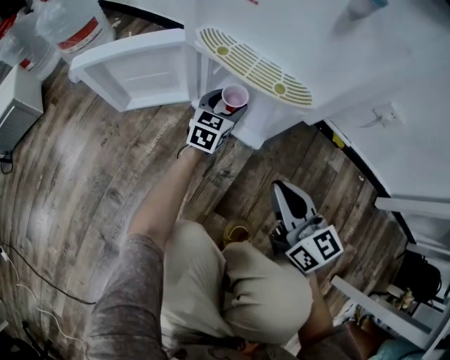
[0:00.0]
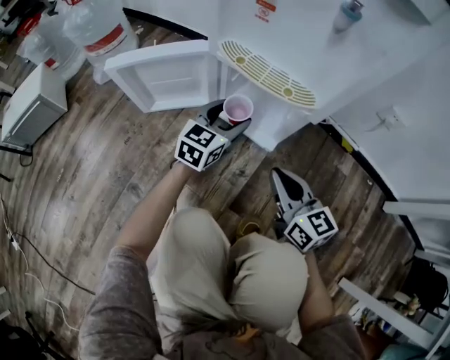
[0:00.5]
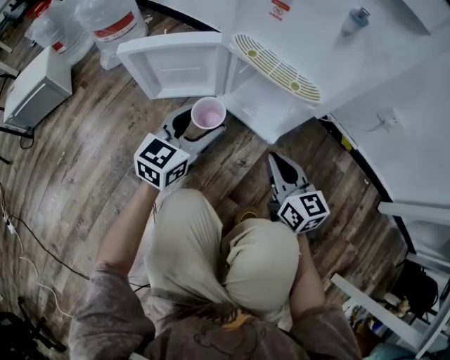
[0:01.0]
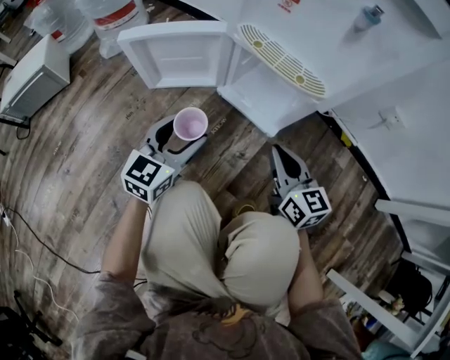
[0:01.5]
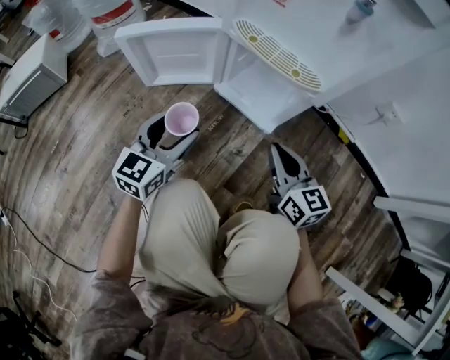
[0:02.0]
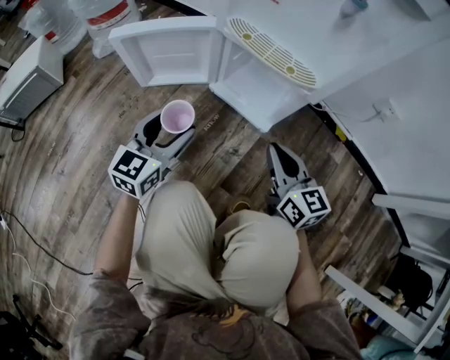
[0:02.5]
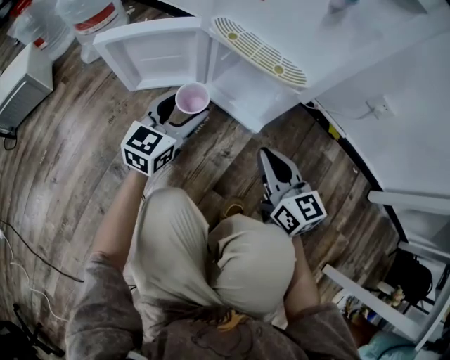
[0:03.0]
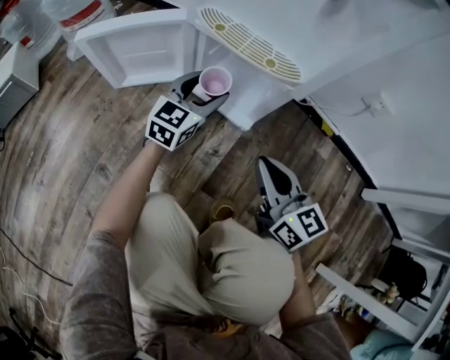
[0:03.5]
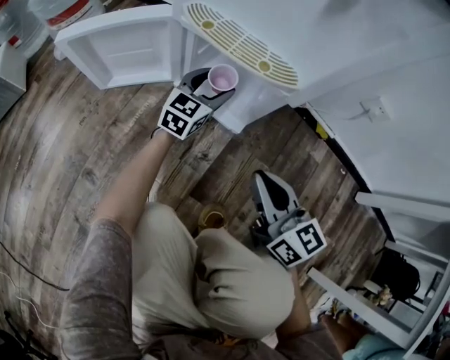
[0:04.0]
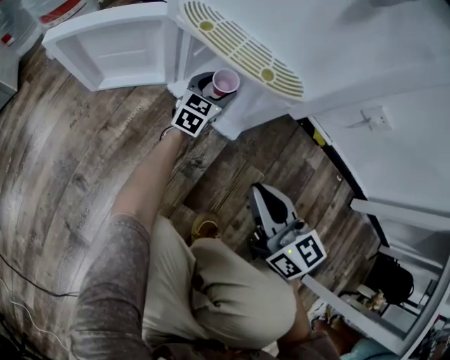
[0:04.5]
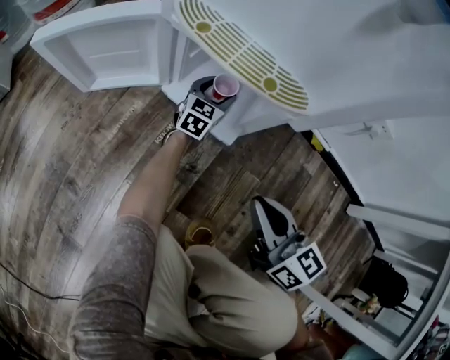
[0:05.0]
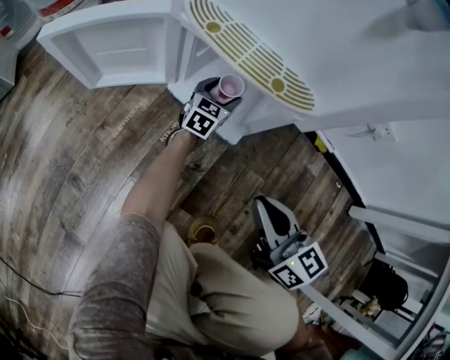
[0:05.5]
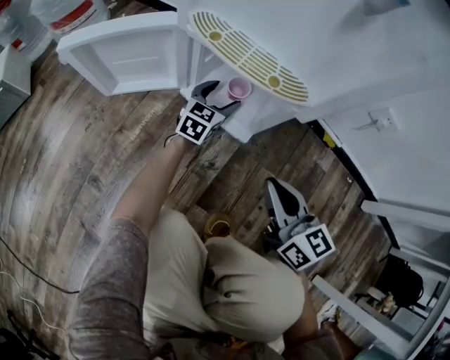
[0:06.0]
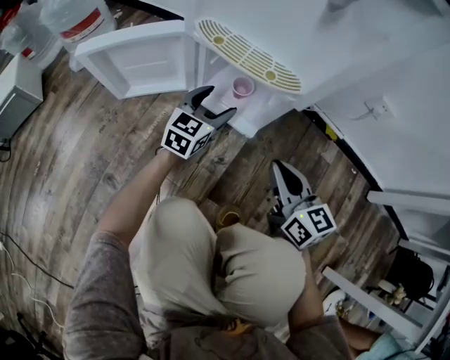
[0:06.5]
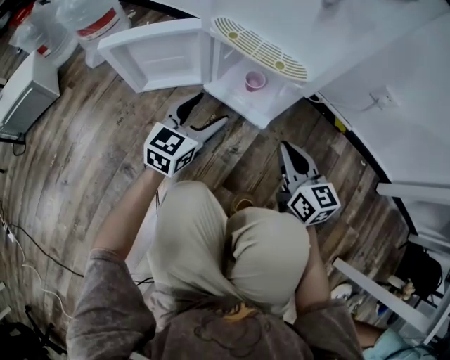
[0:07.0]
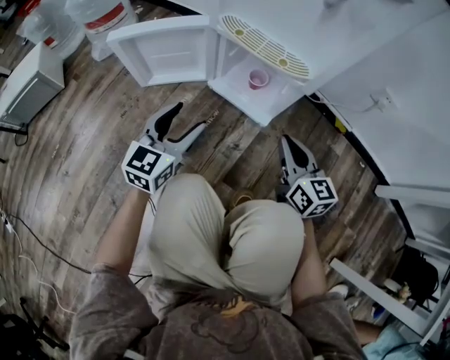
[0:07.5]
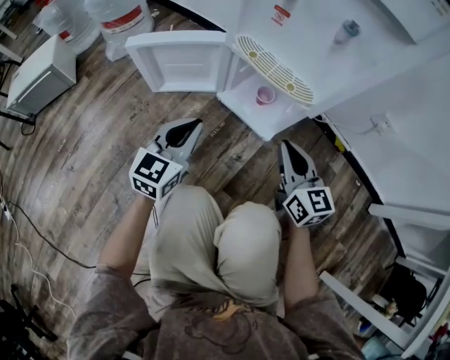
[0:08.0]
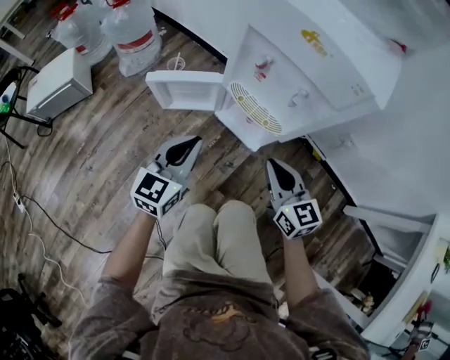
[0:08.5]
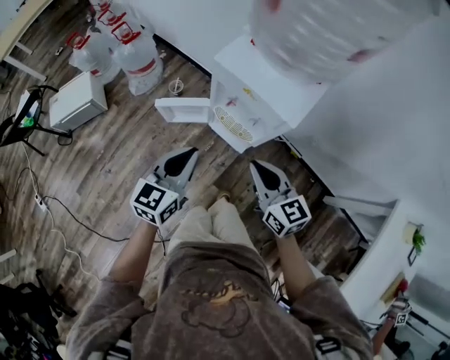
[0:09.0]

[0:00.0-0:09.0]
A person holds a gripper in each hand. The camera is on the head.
0:00.0 to 0:02.0: The left gripper shifts some 30 cm backward, to the left and upward.
0:02.0 to 0:04.5: The left gripper goes roughly 35 cm forward, to the right and downward. Meanwhile the right gripper moves some 5 cm.
0:04.5 to 0:07.0: The left gripper goes roughly 25 cm backward, upward and to the left.
0:07.0 to 0:09.0: The two grippers go some 50 cm upward. The left gripper closes up.

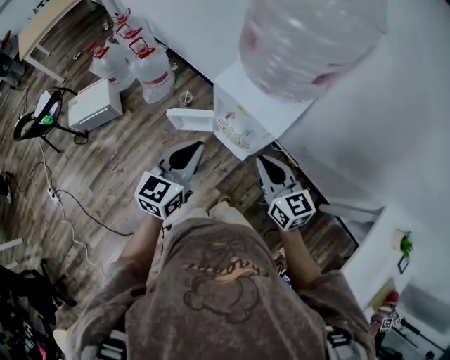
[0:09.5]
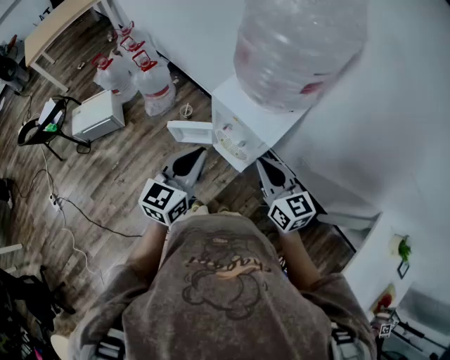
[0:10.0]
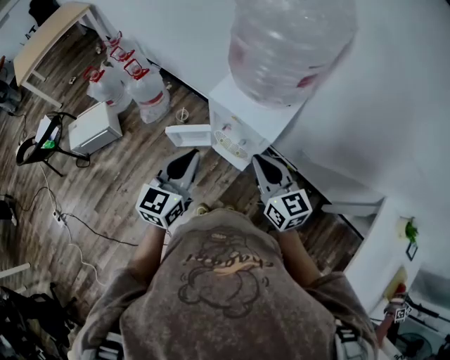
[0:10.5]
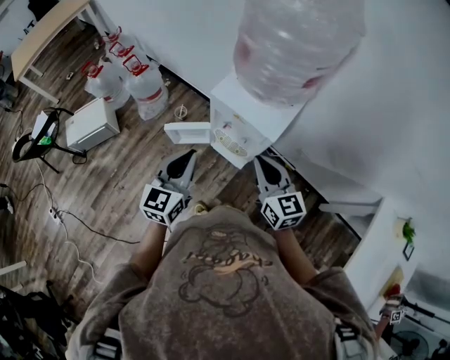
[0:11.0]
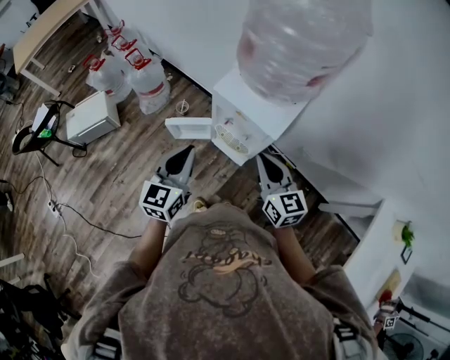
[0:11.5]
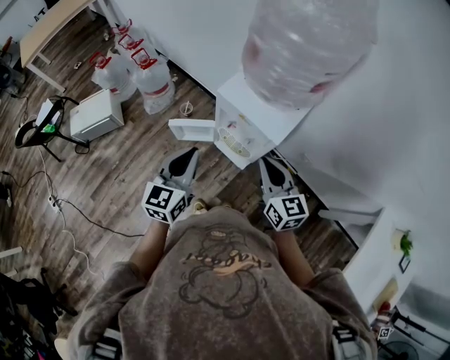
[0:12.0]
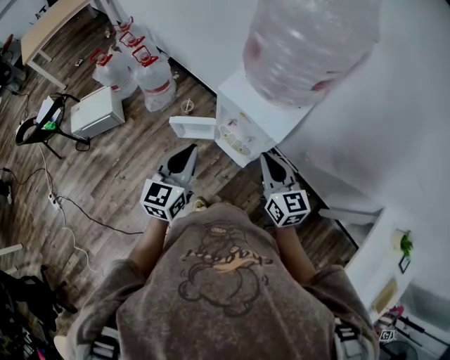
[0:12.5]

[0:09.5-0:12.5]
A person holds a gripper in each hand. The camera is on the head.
0:09.5 to 0:12.5: The grippers stay close to where they were, moving slightly.

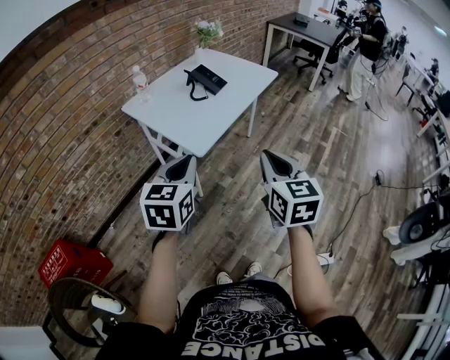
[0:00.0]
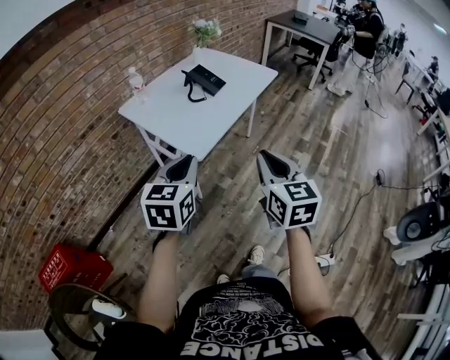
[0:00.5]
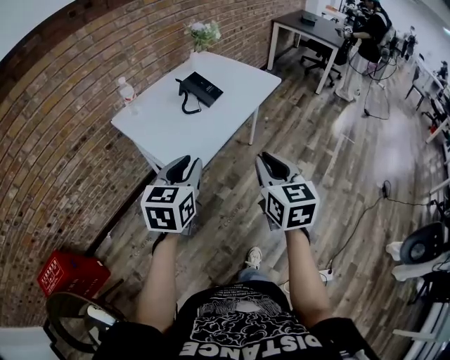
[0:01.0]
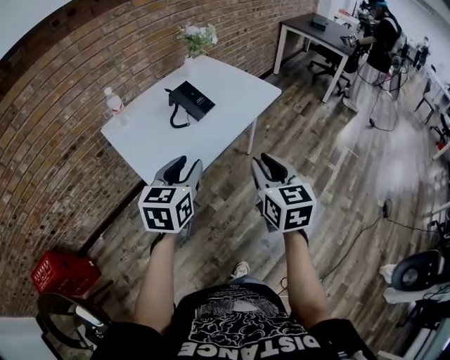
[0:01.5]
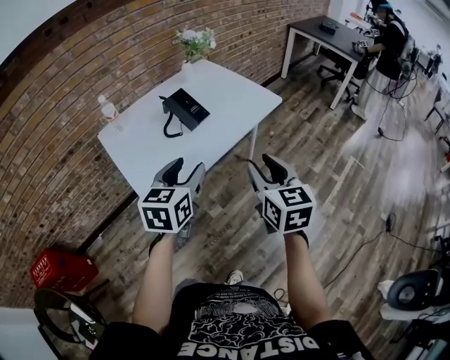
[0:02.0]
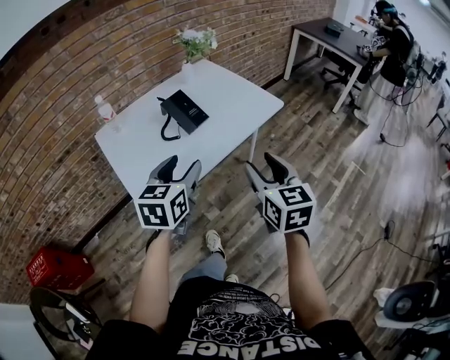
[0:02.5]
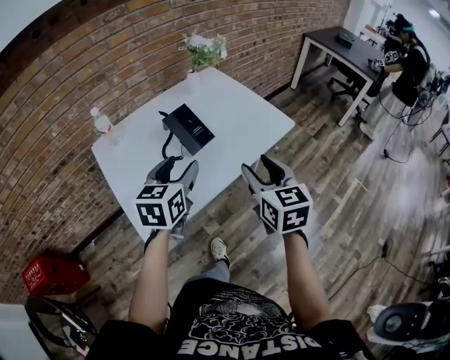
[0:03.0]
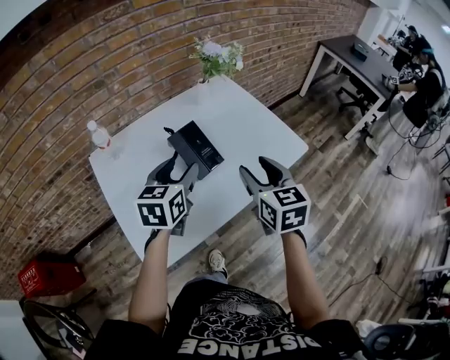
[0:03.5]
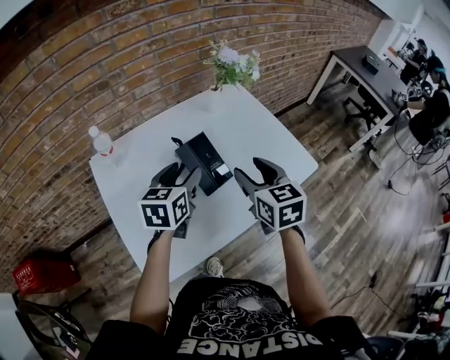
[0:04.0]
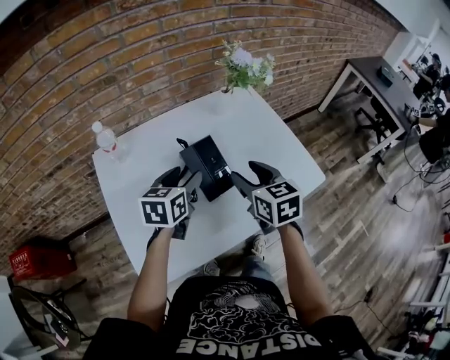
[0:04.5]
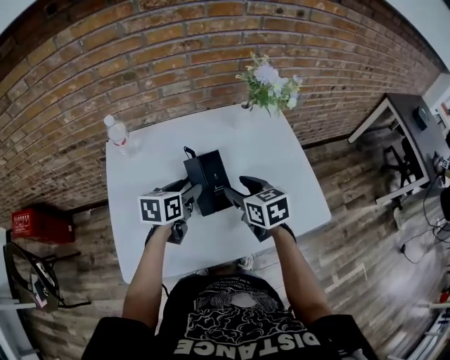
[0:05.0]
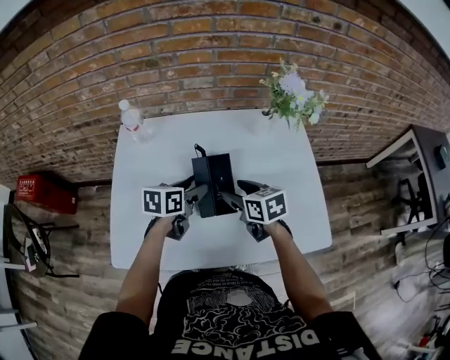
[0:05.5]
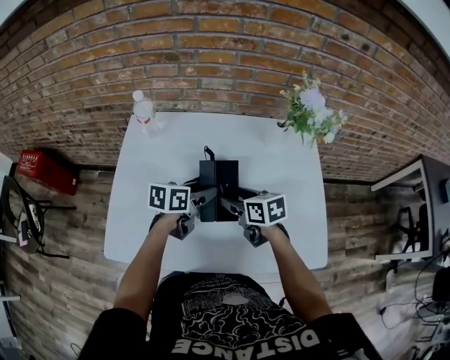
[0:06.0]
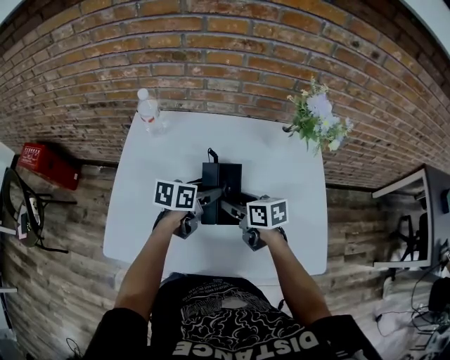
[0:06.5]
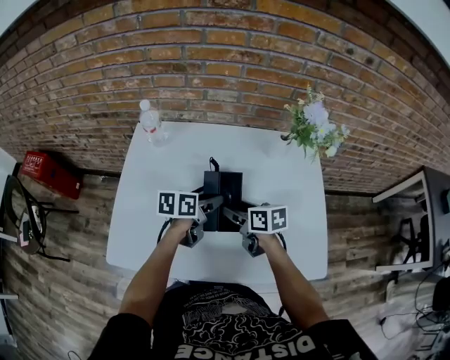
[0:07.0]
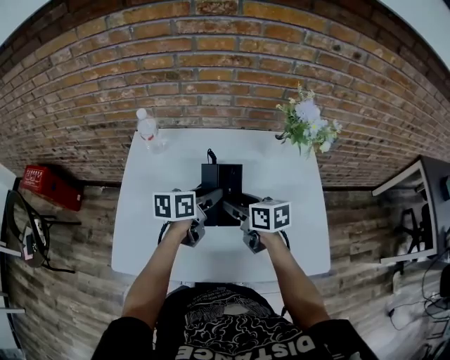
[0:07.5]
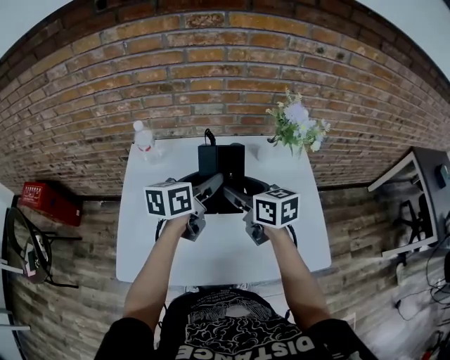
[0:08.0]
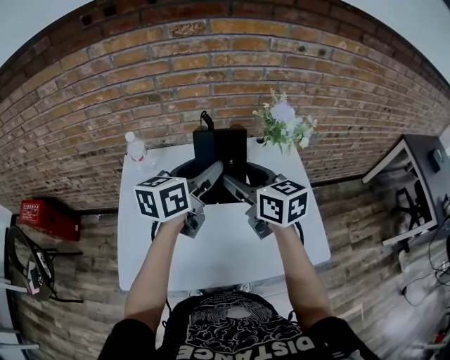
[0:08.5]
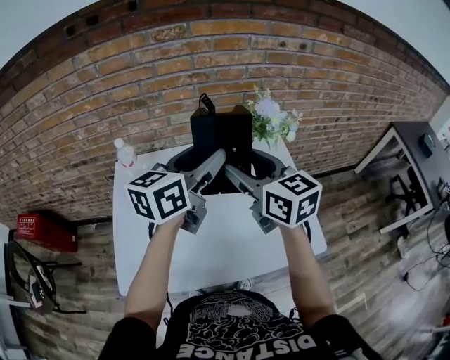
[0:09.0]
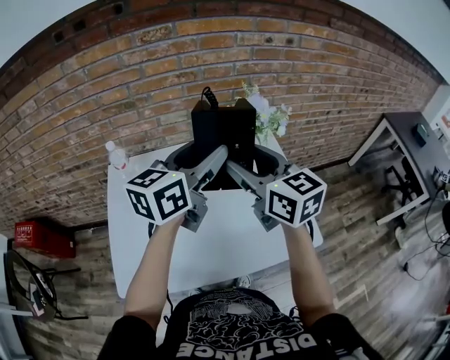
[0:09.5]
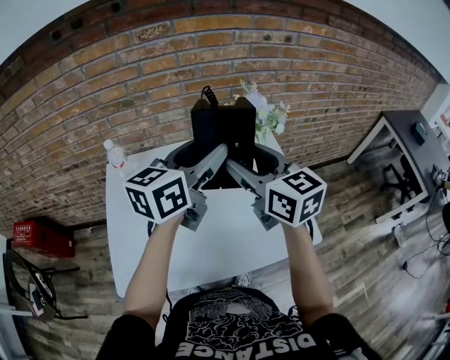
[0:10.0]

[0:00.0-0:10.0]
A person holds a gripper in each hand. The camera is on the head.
0:00.0 to 0:02.0: The two grippers go roughly 35 cm forward and to the right. The left gripper opens its fingers; the right gripper opens.
0:02.0 to 0:04.0: The two grippers go about 35 cm forward.
0:04.0 to 0:06.0: Both grippers move downward, approximately 15 cm. The left gripper rotates roughly 30 degrees; the right gripper turns by approximately 50 degrees.
0:06.0 to 0:08.0: The grippers both shift upward by approximately 15 cm.
0:08.0 to 0:10.0: Both grippers move upward and to the right, approximately 20 cm. The right gripper changes its angle by roughly 20 degrees. Meanwhile the left gripper turns by some 20 degrees.

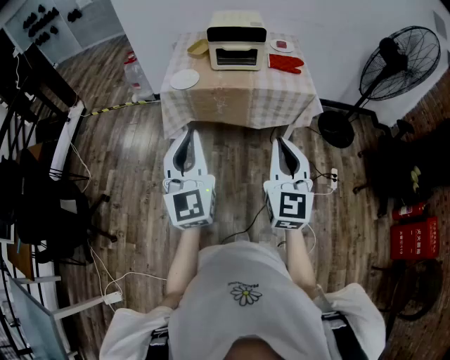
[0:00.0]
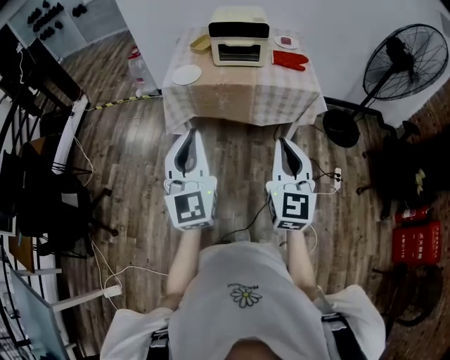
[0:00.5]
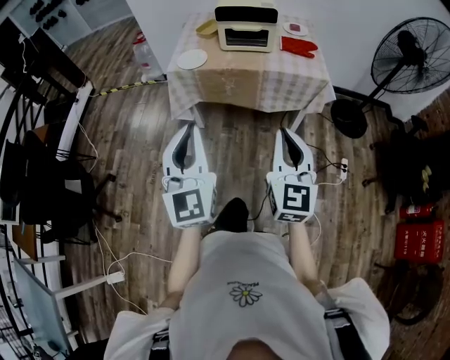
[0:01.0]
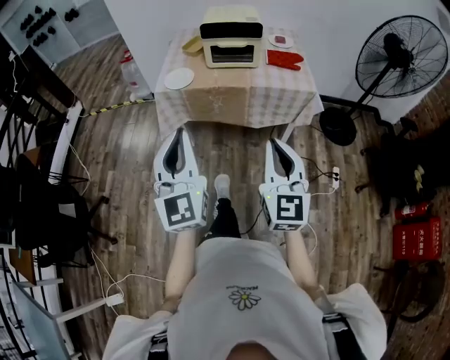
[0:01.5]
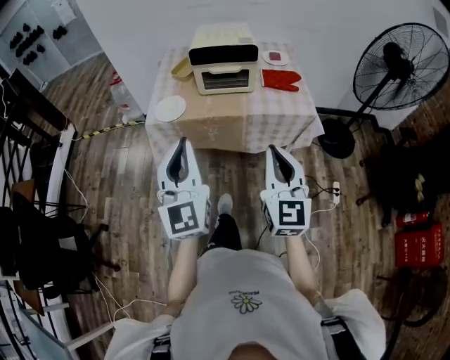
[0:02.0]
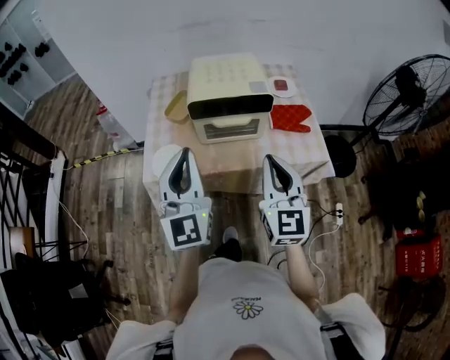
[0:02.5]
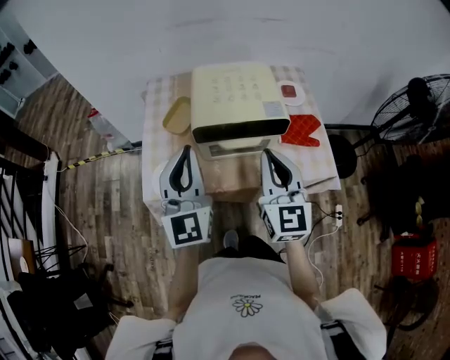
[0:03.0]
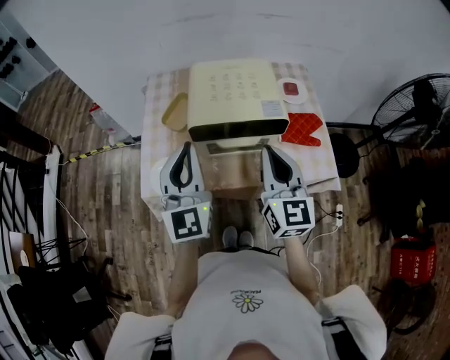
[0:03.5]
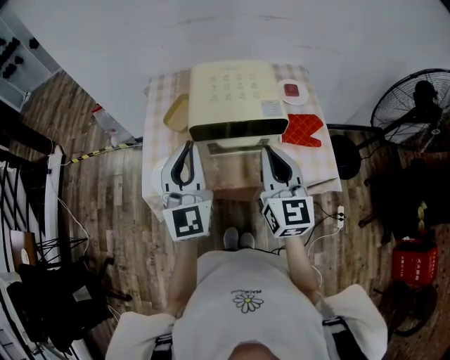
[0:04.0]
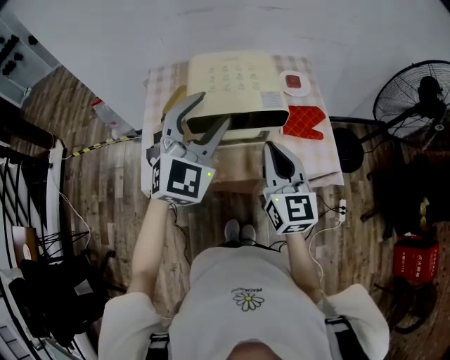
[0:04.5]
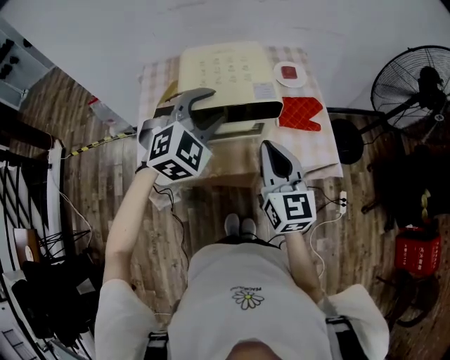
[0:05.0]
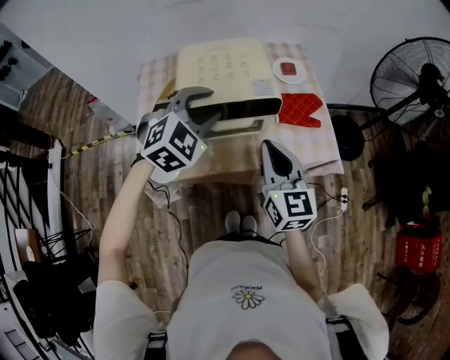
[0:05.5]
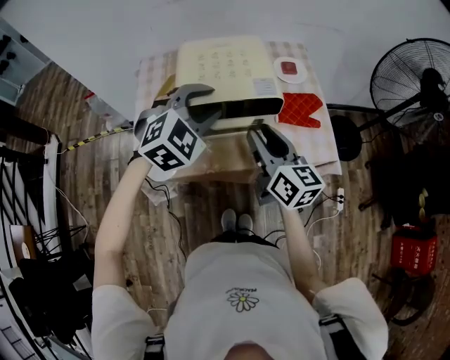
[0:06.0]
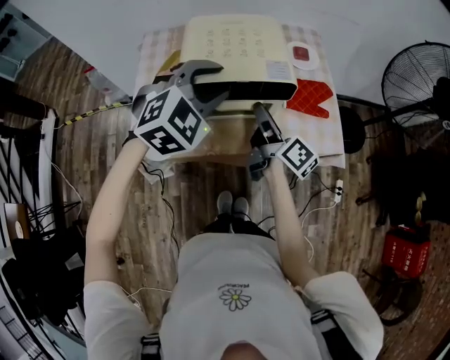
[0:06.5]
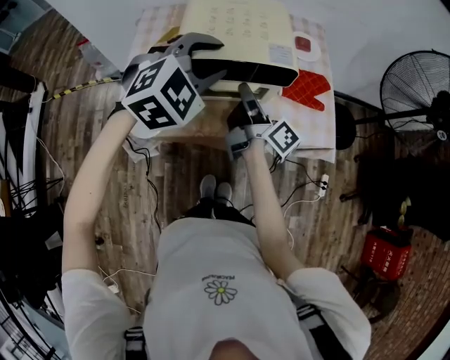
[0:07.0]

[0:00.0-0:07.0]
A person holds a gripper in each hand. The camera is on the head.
0:00.0 to 0:02.0: Both grippers move forward, approximately 15 cm.
0:02.0 to 0:03.5: The grippers both shift forward by approximately 35 cm.
0:03.5 to 0:05.0: The left gripper heads to the right and forward, covering about 10 cm, points its fingers roughly 40 degrees further downward, and opens.
0:05.0 to 0:07.0: The right gripper goes about 15 cm downward and forward, twists roughly 70 degrees clockwise, seen from behind, and opens and closes again.
